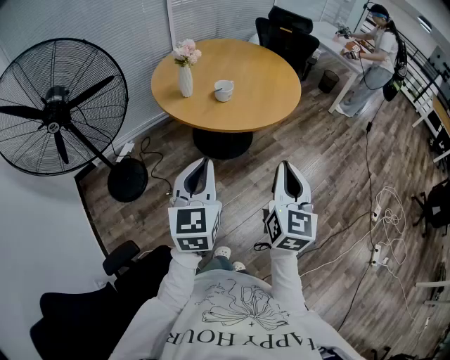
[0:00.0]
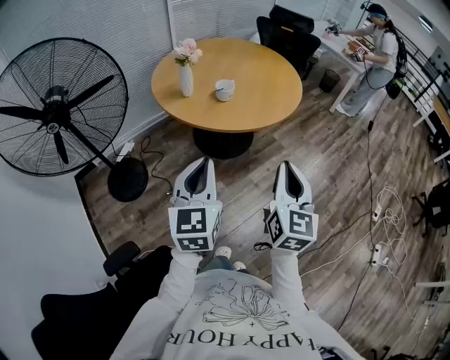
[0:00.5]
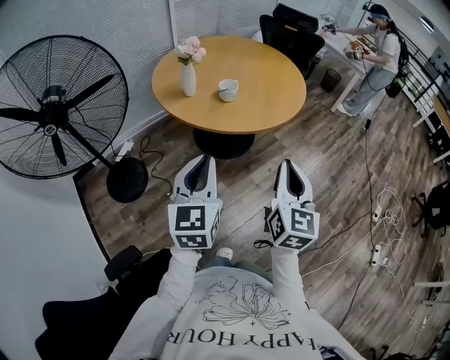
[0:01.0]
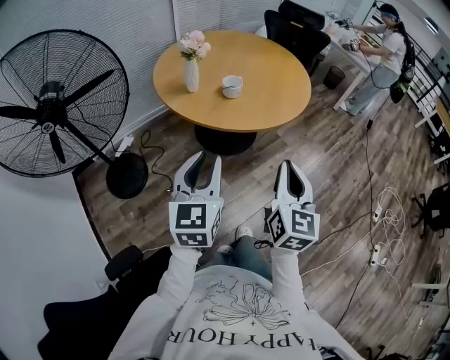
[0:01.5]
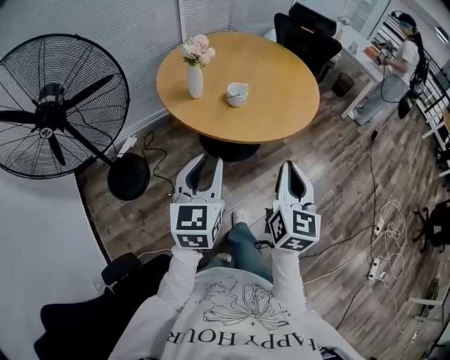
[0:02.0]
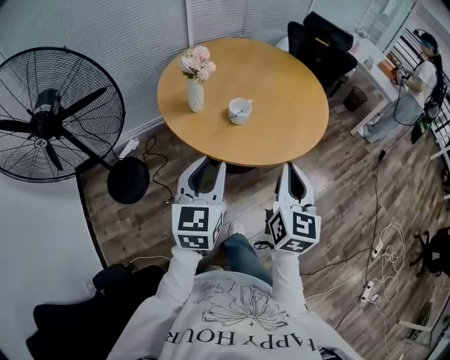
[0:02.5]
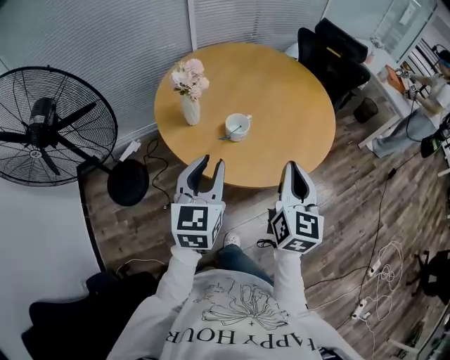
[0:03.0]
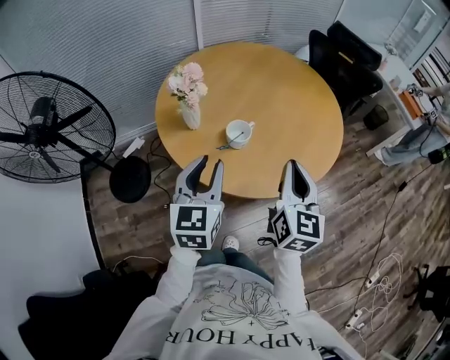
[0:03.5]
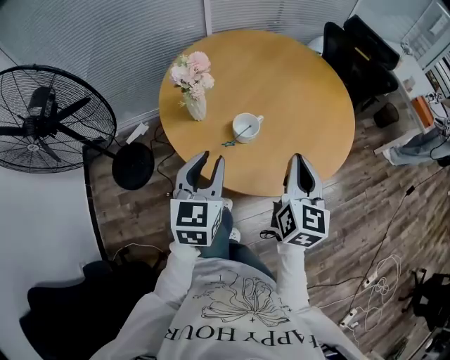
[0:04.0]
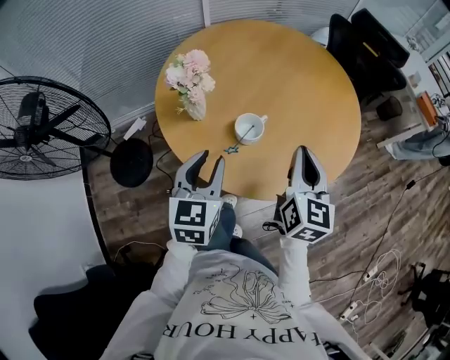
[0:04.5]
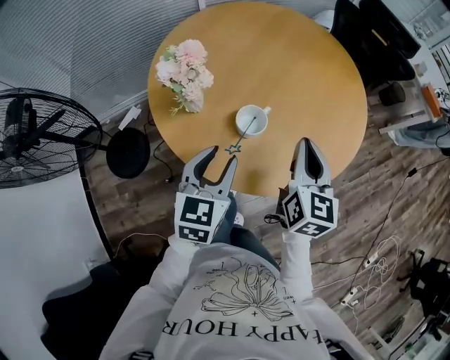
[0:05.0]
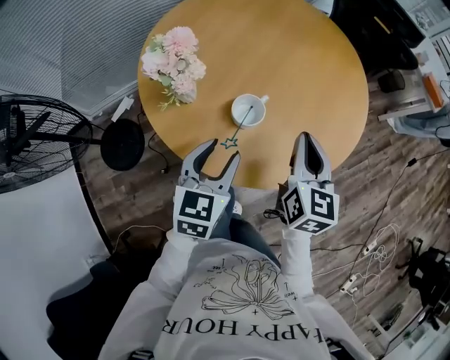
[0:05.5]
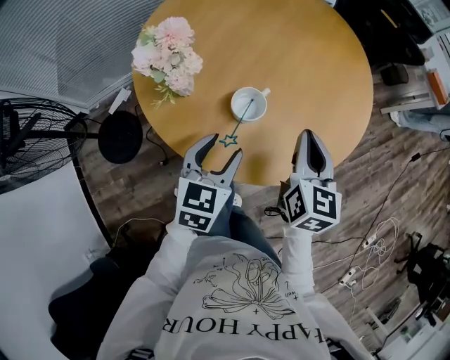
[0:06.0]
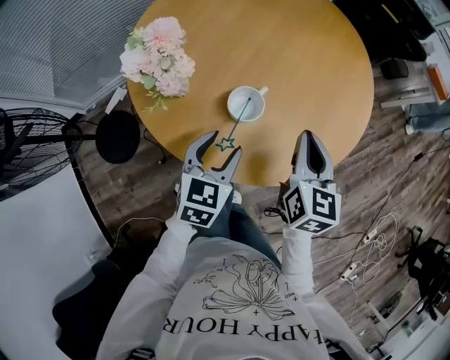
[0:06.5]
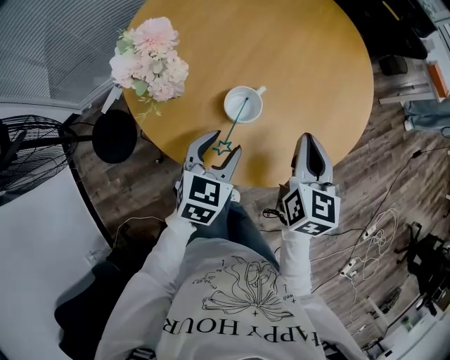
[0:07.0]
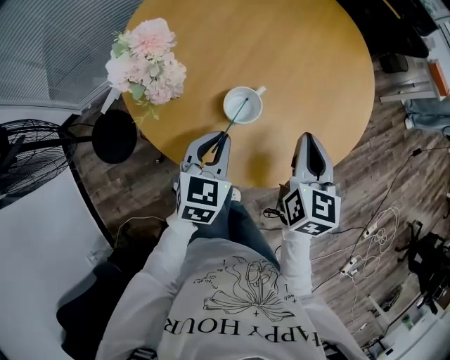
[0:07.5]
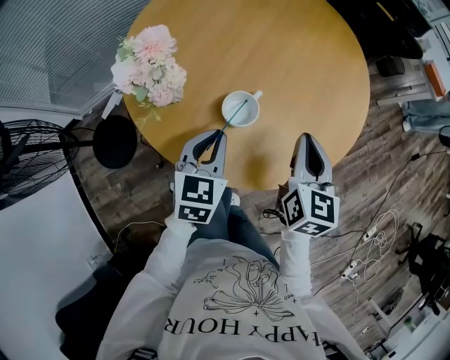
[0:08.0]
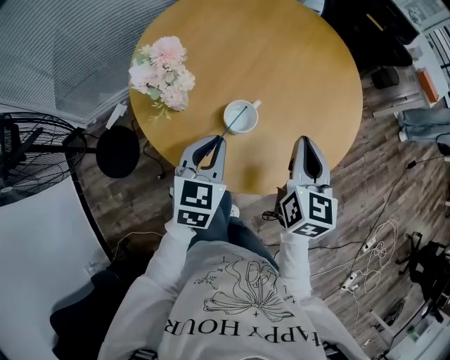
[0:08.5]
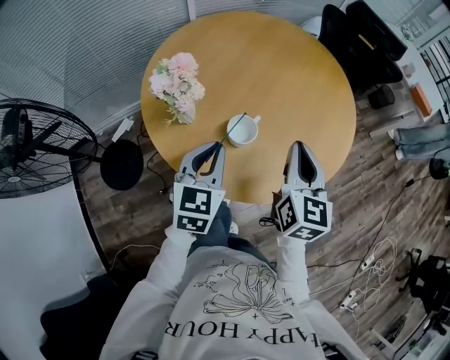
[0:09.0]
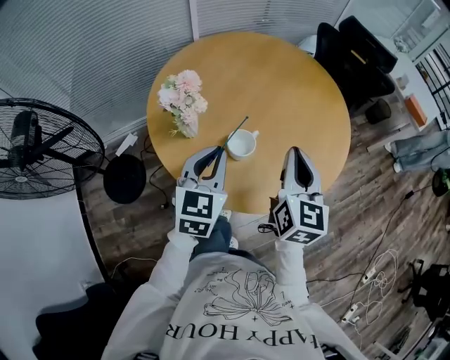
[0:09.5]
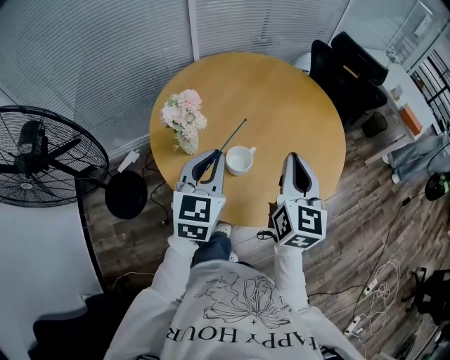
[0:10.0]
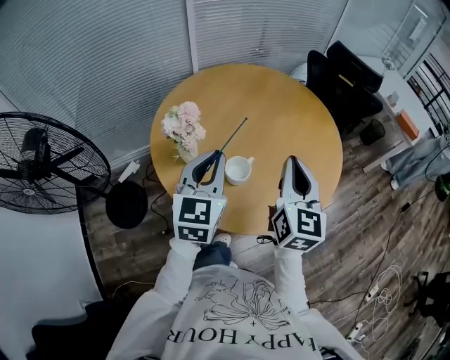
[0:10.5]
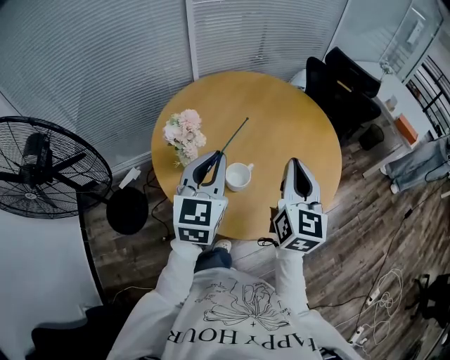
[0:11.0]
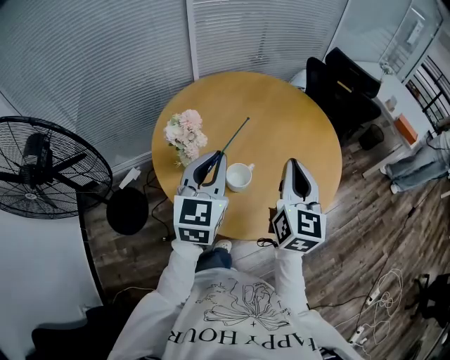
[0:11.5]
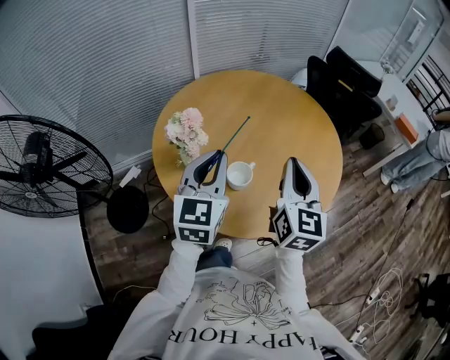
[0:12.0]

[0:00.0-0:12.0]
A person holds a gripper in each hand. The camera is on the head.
0:00.0 to 0:02.0: The two grippers go some 10 cm forward. The left gripper opens up.
0:02.0 to 0:04.0: The grippers both shift forward by about 30 cm.
0:04.0 to 0:06.0: The right gripper is displaced forward and downward by about 15 cm; the left gripper is displaced downward and forward by approximately 15 cm, swivels some 20 degrees, and opens its fingers.
0:06.0 to 0:08.0: The left gripper changes place by some 5 cm, and closes up.
0:08.0 to 0:10.0: Both grippers move upward, roughly 15 cm. The left gripper changes its angle by approximately 20 degrees.
0:10.0 to 0:12.0: The left gripper moves some 5 cm.

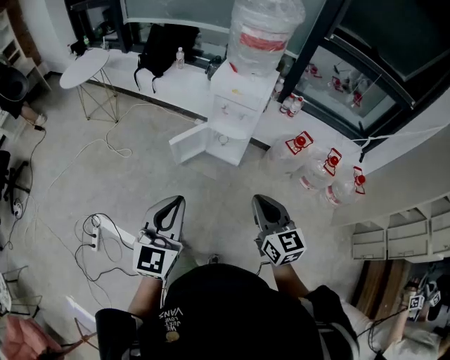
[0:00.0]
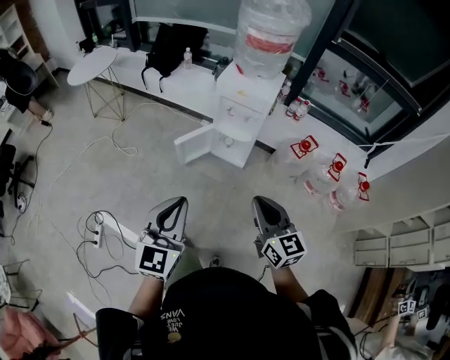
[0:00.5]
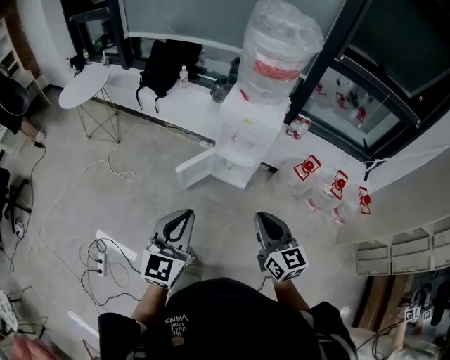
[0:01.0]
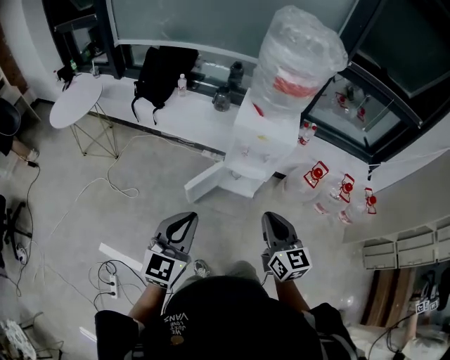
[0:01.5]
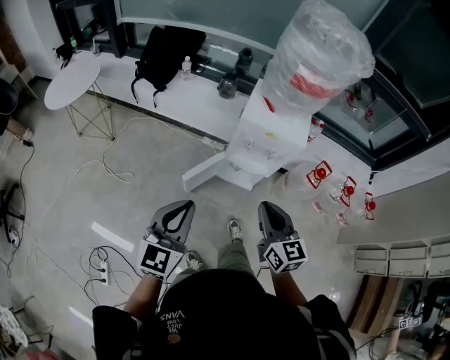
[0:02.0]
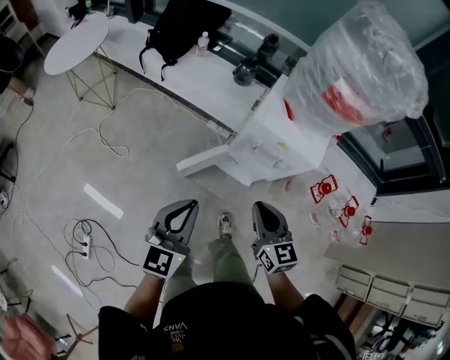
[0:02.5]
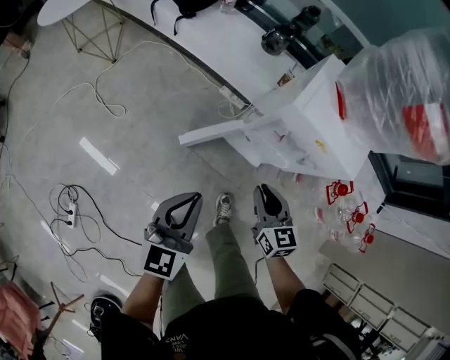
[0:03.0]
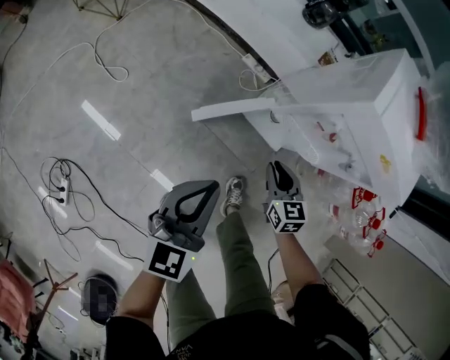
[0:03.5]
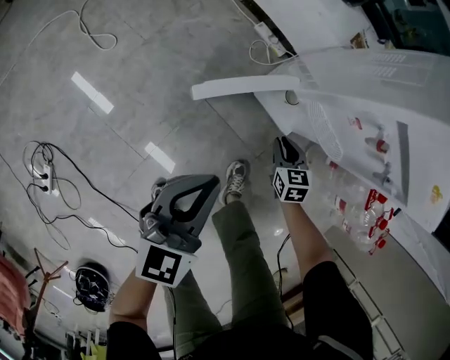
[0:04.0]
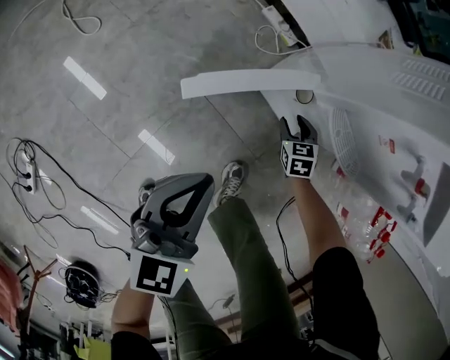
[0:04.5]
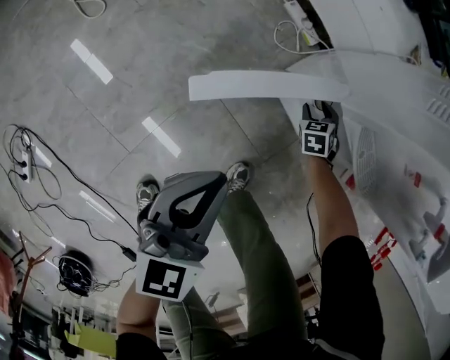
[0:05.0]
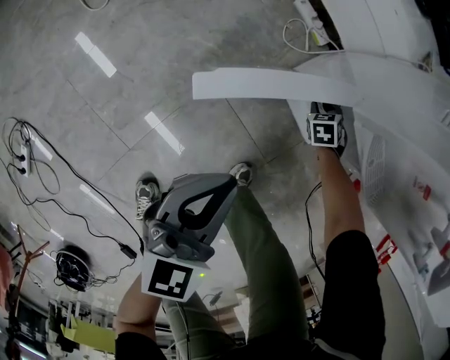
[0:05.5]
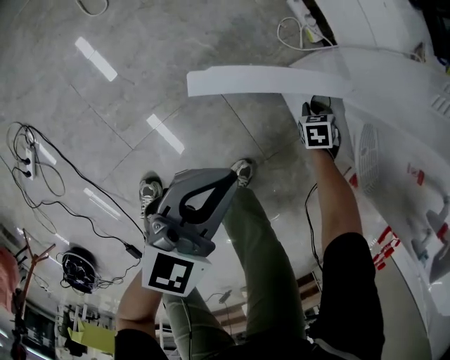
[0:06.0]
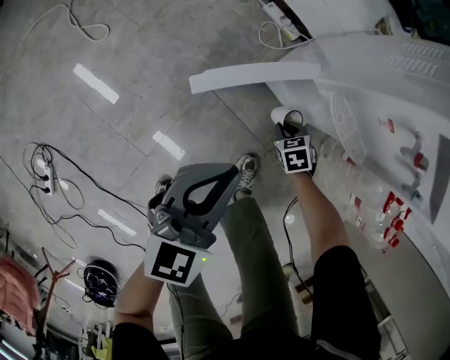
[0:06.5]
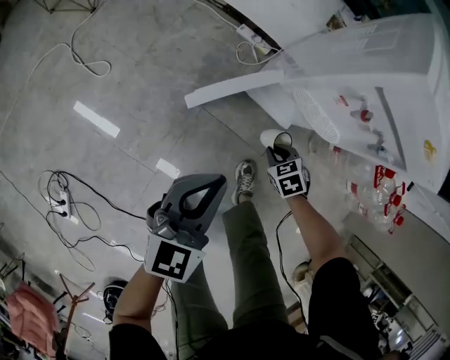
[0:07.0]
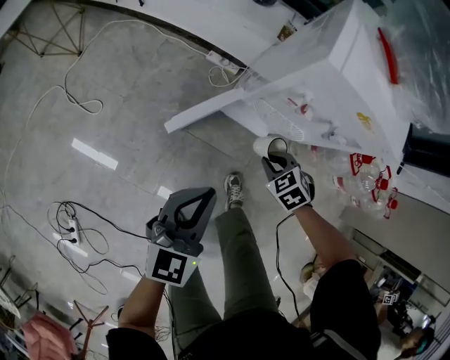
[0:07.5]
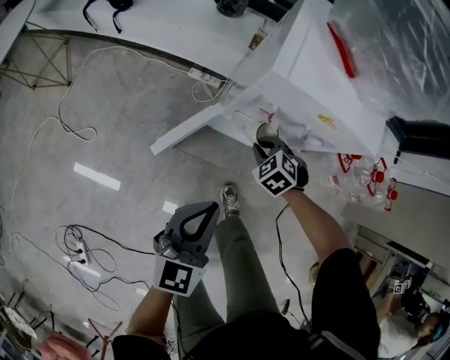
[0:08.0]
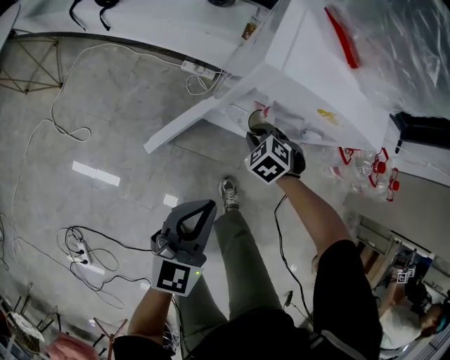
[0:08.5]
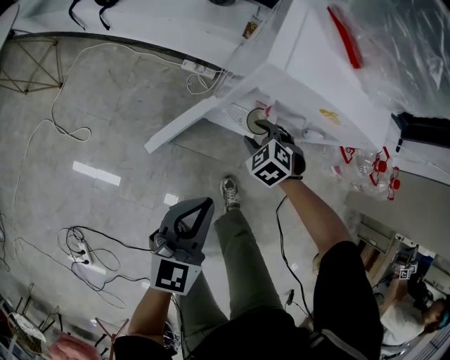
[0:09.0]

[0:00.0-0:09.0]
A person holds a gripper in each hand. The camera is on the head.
0:00.0 to 0:02.0: The two grippers go about 30 cm forward and to the left.
0:02.0 to 0:04.5: The left gripper travels downward by some 60 cm, and rotates about 20 degrees, while the right gripper shifts approximately 80 cm downward and forward, tips its fingers downward by roughly 50 degrees, and opens its fingers.
0:04.5 to 0:07.0: The right gripper shifts by approximately 20 cm, and closes its fingers; the left gripper shifts about 10 cm upward.
0:07.0 to 0:09.0: The right gripper goes roughly 20 cm upward and forward, and opens, while the left gripper goes roughly 15 cm upward and to the right.

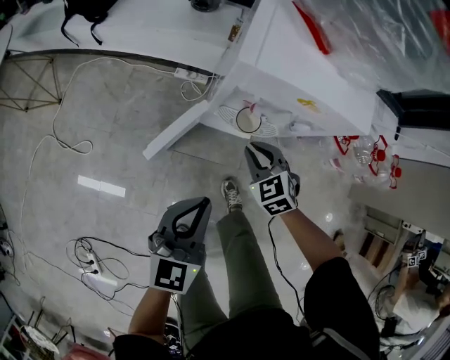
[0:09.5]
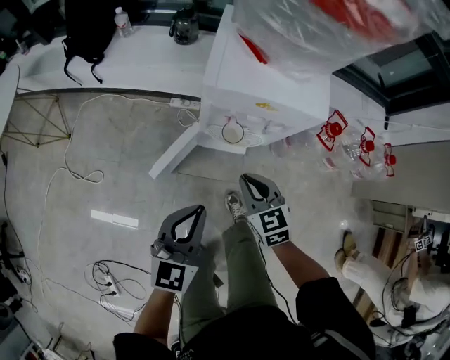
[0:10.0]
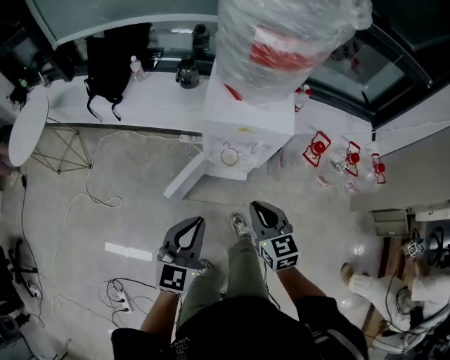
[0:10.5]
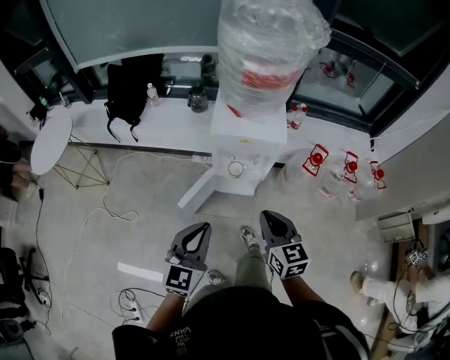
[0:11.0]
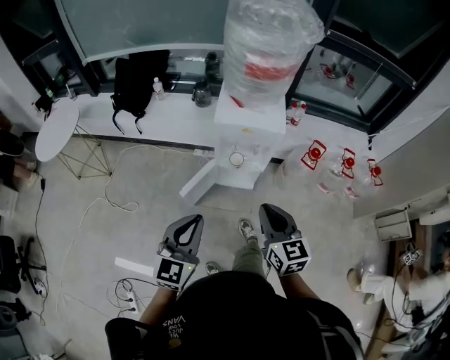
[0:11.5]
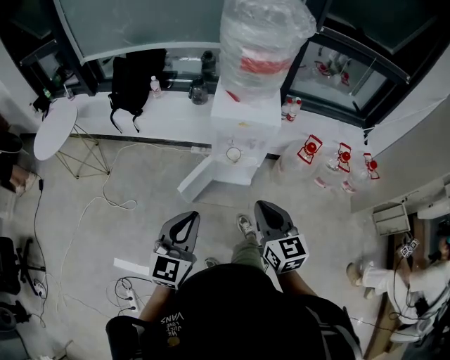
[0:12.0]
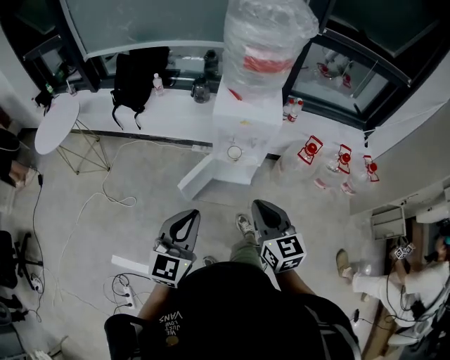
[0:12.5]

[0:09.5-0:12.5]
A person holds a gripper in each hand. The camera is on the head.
0:09.5 to 0:11.0: Both grippers move upward and backward, roughly 35 cm. The right gripper rotates roughly 40 degrees.
0:11.0 to 0:12.5: The left gripper shifts approximately 10 cm backward; the right gripper goes some 10 cm backward and upward.

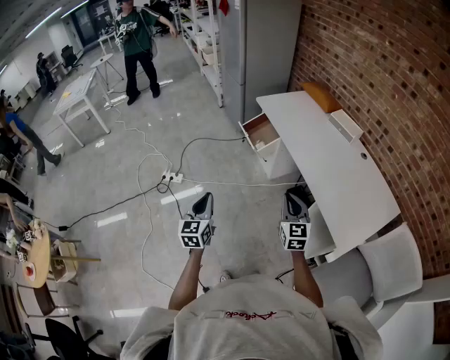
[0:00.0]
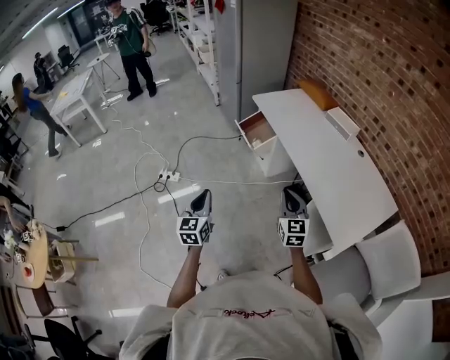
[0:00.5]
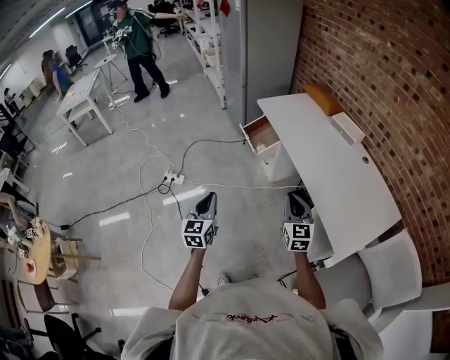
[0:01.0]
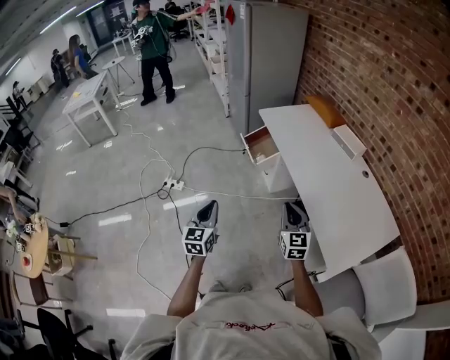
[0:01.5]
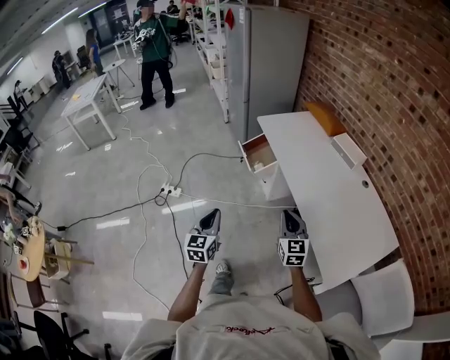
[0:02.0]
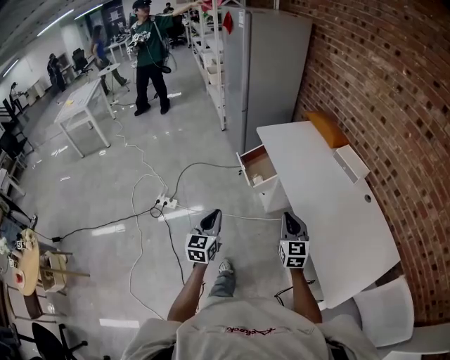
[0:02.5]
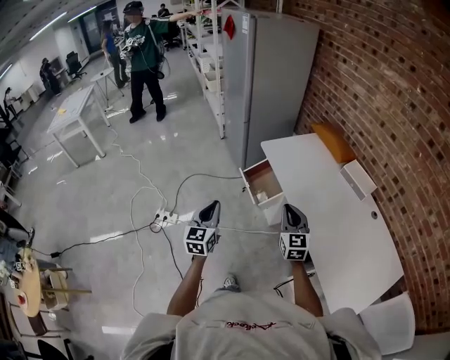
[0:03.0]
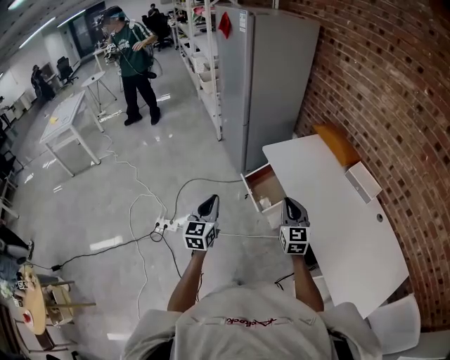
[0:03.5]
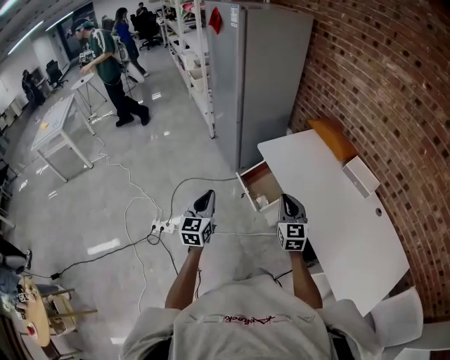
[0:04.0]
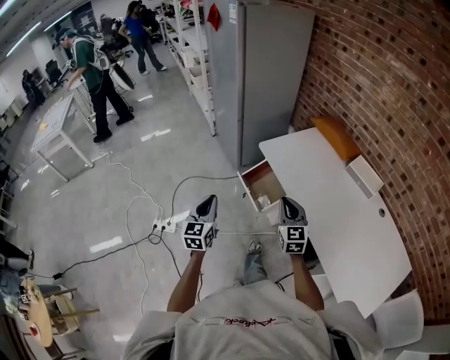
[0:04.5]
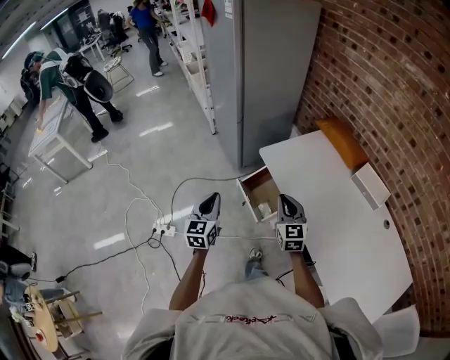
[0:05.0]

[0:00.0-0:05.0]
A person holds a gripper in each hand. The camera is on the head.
0:00.0 to 0:02.5: The right gripper heads forward, covering about 15 cm; the left gripper goes about 20 cm forward and to the right.
0:02.5 to 0:05.0: Both grippers move forward, about 35 cm.
